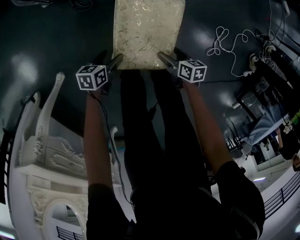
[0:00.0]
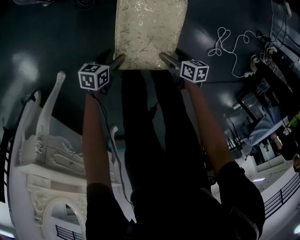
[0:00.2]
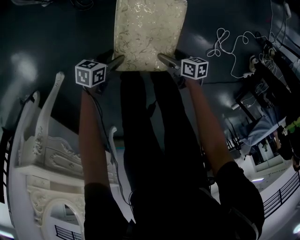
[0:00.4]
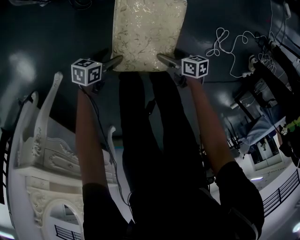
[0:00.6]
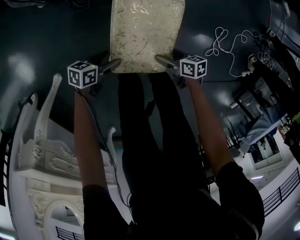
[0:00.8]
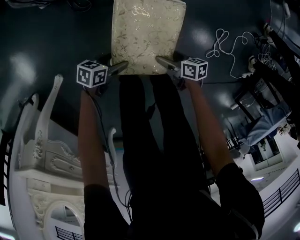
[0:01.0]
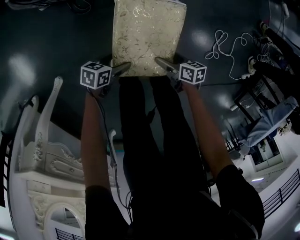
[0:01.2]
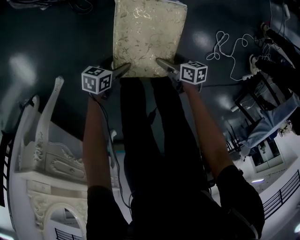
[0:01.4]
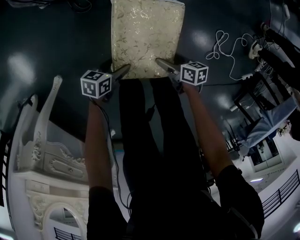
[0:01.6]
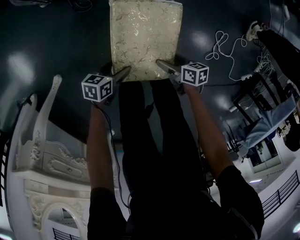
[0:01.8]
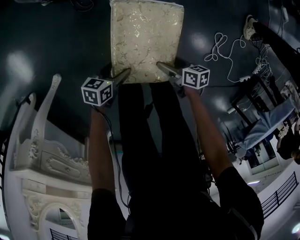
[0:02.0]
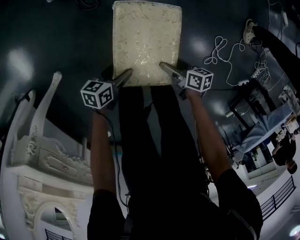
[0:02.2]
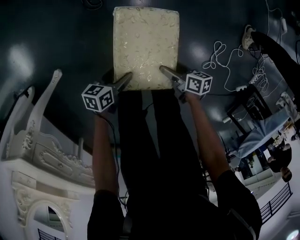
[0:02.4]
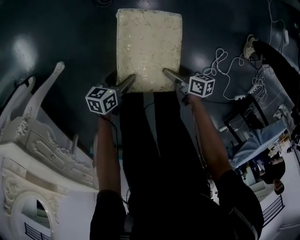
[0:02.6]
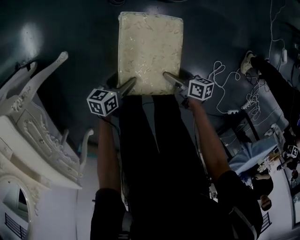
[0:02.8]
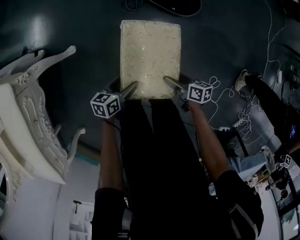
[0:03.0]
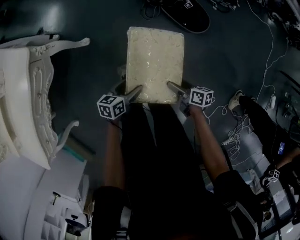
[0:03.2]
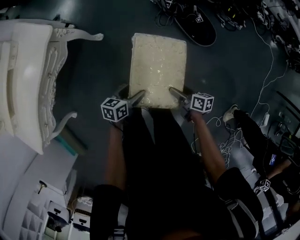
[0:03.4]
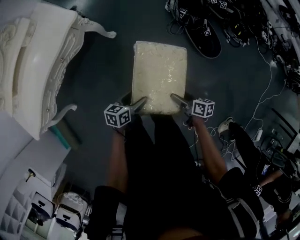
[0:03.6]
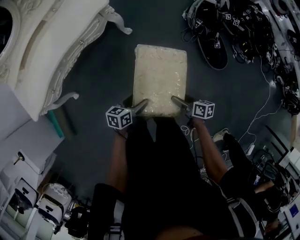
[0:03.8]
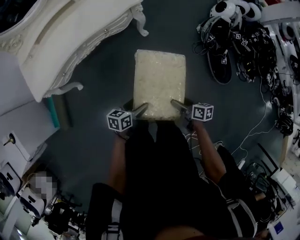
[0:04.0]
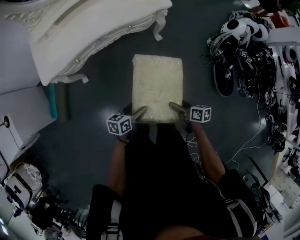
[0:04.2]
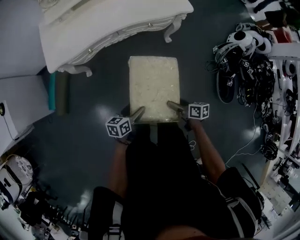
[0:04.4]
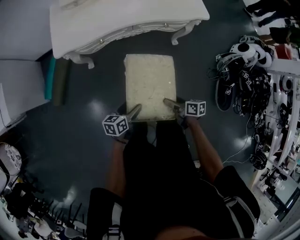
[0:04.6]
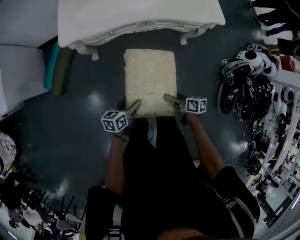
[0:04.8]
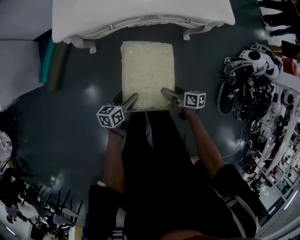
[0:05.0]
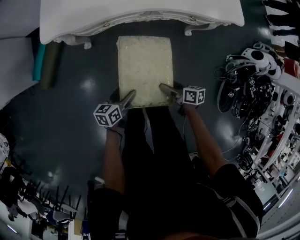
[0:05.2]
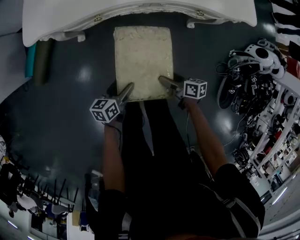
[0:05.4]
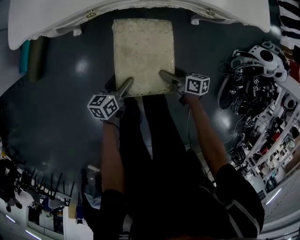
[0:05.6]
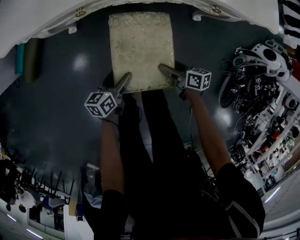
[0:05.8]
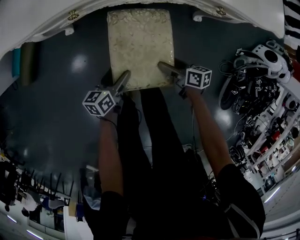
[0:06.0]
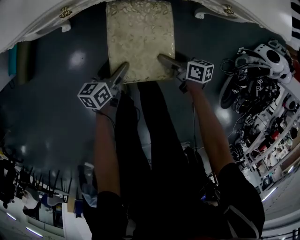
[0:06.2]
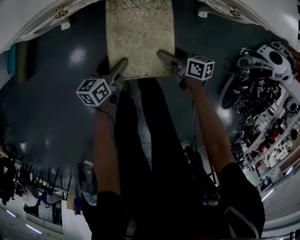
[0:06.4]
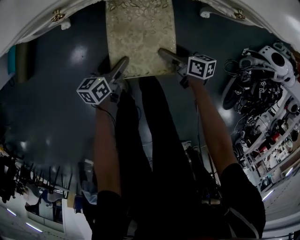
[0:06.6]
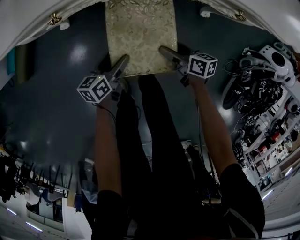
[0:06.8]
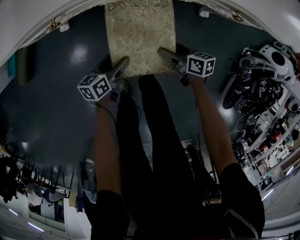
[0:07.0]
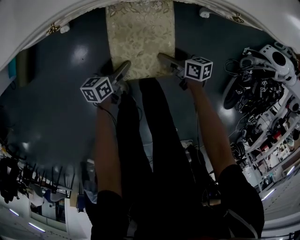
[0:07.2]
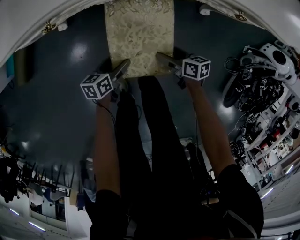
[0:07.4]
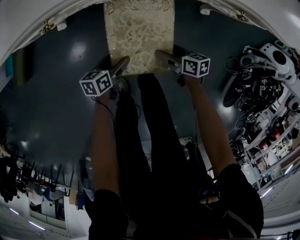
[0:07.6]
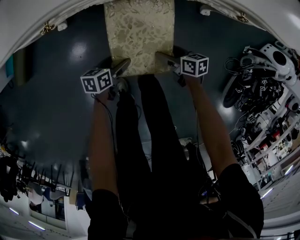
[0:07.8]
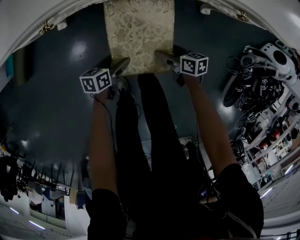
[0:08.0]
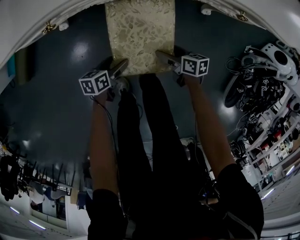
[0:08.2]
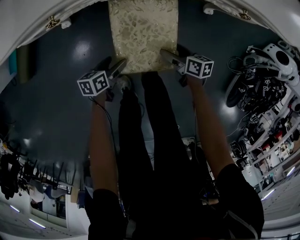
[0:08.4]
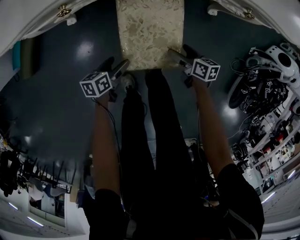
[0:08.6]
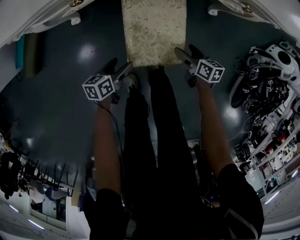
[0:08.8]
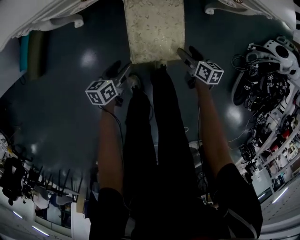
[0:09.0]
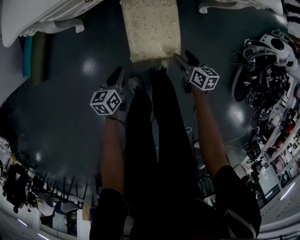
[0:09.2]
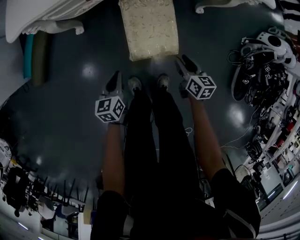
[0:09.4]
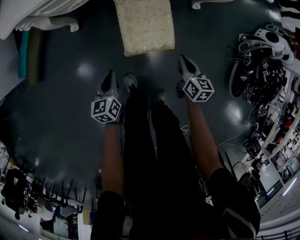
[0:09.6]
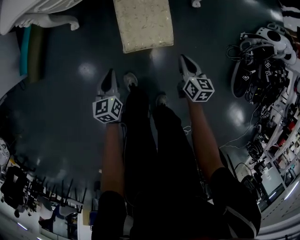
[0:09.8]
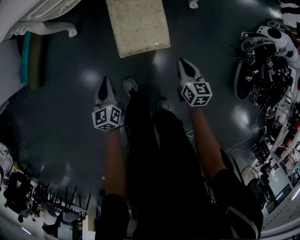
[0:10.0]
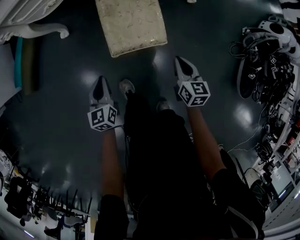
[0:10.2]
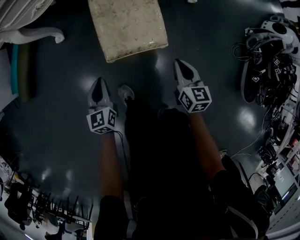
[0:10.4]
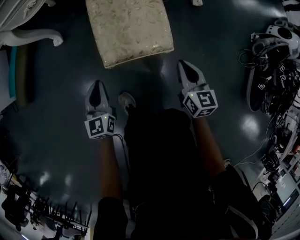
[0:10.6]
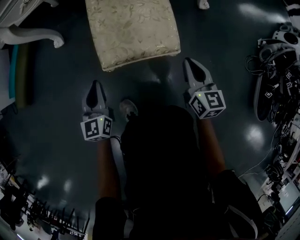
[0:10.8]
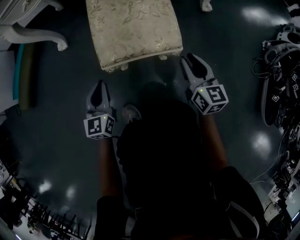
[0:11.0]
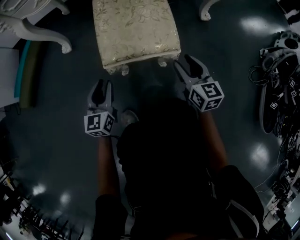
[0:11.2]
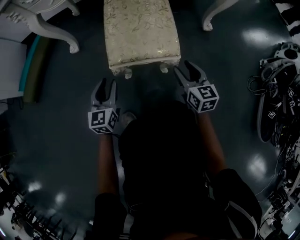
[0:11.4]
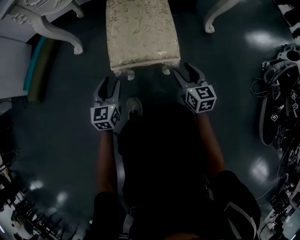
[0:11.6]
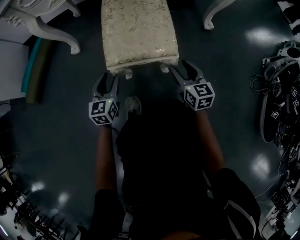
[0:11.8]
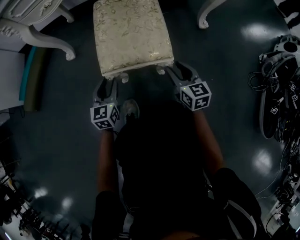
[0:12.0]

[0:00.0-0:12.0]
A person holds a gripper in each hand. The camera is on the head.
0:00.0 to 0:01.6: The grippers move only a little.
0:01.6 to 0:03.0: The two grippers go some 15 cm upward. The left gripper changes its angle by about 40 degrees; the right gripper rotates roughly 30 degrees.
0:03.0 to 0:04.4: Both grippers are carried some 50 cm. The left gripper changes its angle by some 60 degrees, while the right gripper changes its angle by some 60 degrees.
0:04.4 to 0:06.0: The two grippers go some 35 cm downward and forward. The left gripper rotates some 20 degrees.
0:06.0 to 0:07.6: Both grippers move downward, some 10 cm.
0:07.6 to 0:09.0: The left gripper goes some 10 cm upward, to the left and backward; the right gripper moves upward, about 5 cm, and swivels roughly 20 degrees.
0:09.0 to 0:10.4: The two grippers go roughly 10 cm backward. The right gripper rotates roughly 30 degrees, and closes up, while the left gripper rotates approximately 40 degrees, and closes.
0:10.4 to 0:12.0: Both grippers travel together downward, roughly 15 cm. The left gripper opens its fingers. The right gripper opens its fingers.

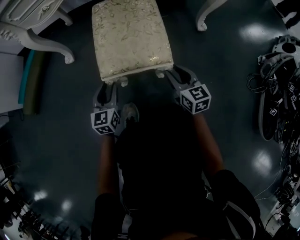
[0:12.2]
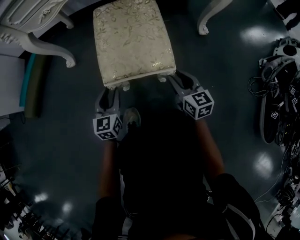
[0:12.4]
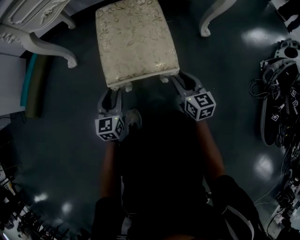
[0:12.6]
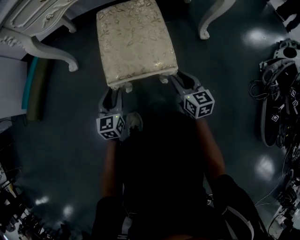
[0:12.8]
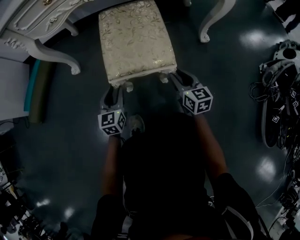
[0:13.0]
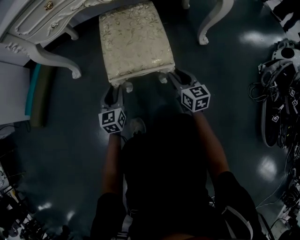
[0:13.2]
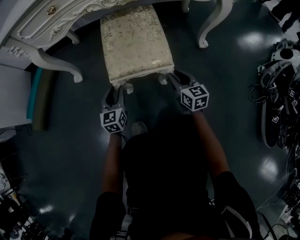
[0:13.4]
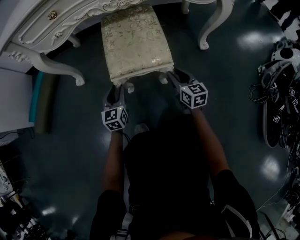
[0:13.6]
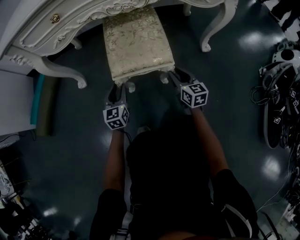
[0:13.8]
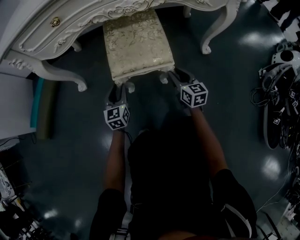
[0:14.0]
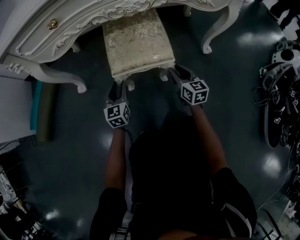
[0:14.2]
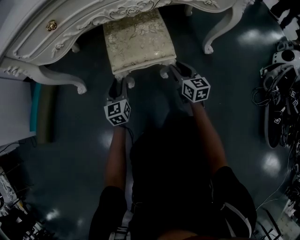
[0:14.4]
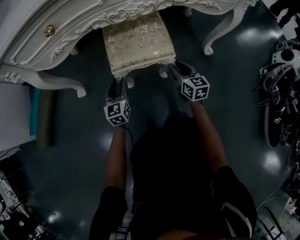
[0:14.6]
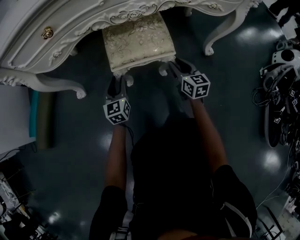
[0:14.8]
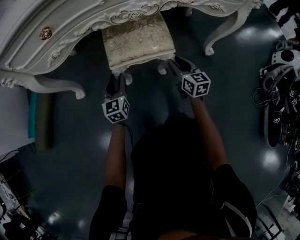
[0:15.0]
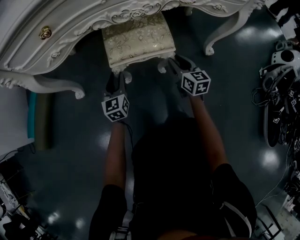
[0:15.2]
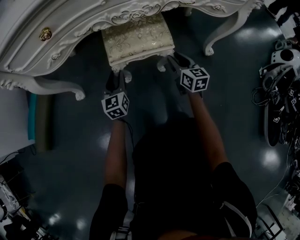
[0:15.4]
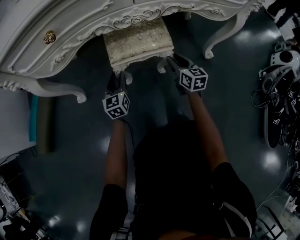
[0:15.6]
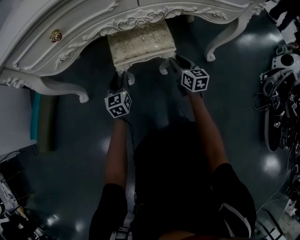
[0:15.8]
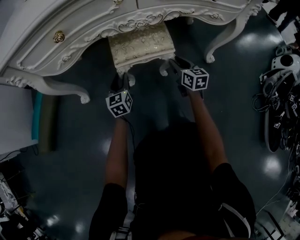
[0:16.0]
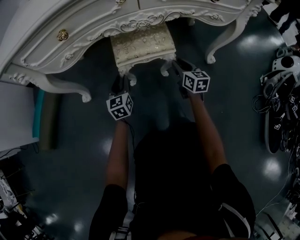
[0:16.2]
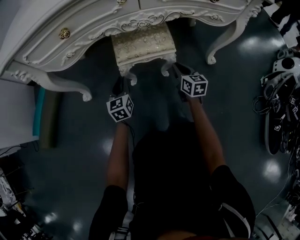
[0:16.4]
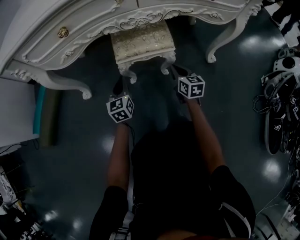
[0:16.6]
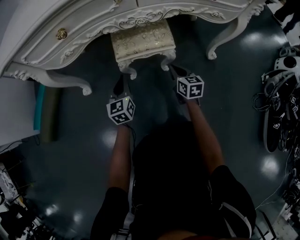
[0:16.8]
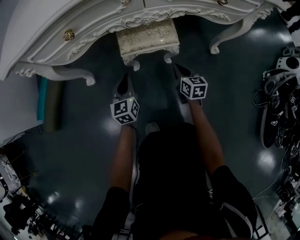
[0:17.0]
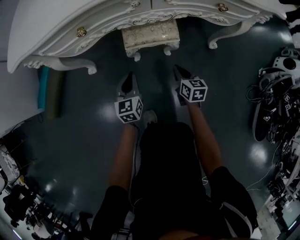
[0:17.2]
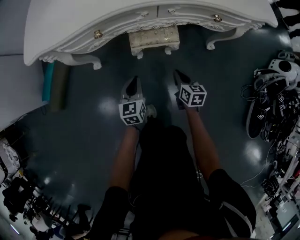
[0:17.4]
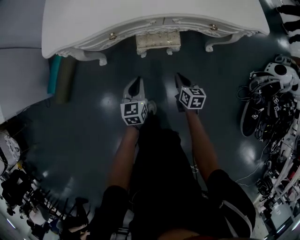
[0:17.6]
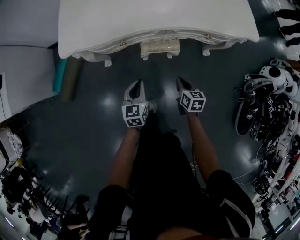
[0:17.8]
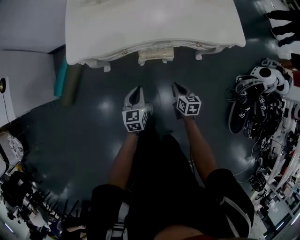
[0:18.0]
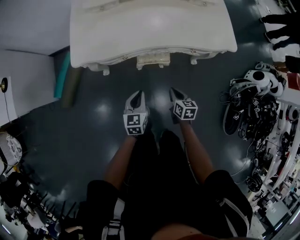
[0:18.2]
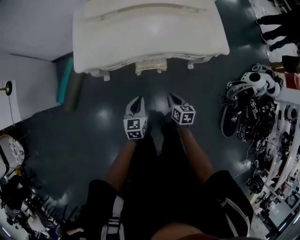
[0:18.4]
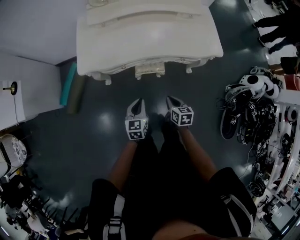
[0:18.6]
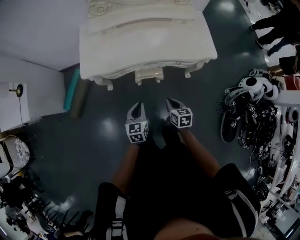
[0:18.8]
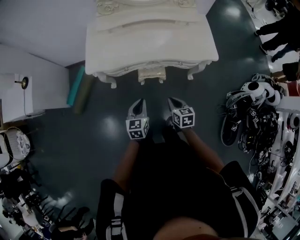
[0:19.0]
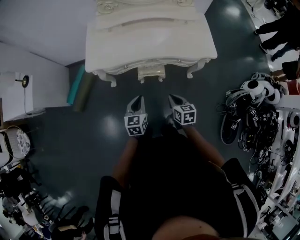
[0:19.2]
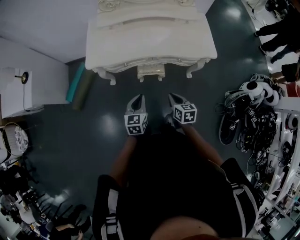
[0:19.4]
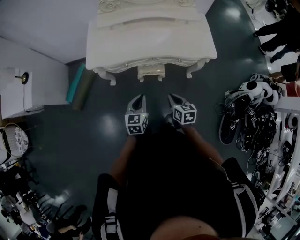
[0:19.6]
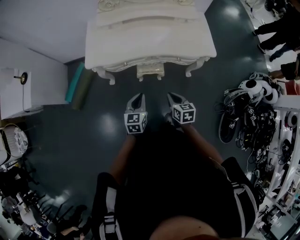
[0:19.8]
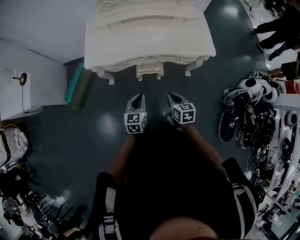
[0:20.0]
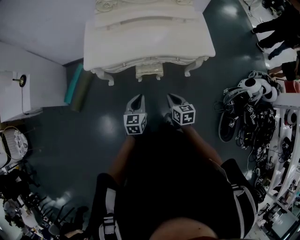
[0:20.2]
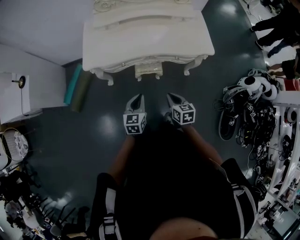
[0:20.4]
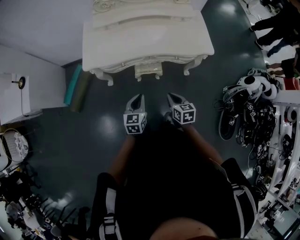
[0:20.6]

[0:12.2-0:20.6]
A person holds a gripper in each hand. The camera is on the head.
0:12.2 to 0:13.6: Both grippers move forward, approximately 10 cm.
0:13.6 to 0:15.0: The two grippers go about 15 cm forward.
0:15.0 to 0:16.4: There are only small adjustments of the grippers.
0:16.4 to 0:17.8: The left gripper travels upward by roughly 35 cm. Meanwhile the right gripper travels upward and backward by approximately 30 cm, and changes its angle by about 20 degrees.
0:17.8 to 0:19.2: Both grippers move upward, some 30 cm.
0:19.2 to 0:20.6: The grippers make only small movements.

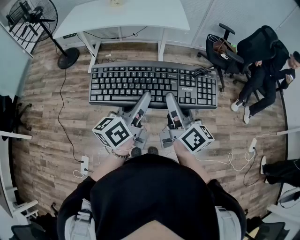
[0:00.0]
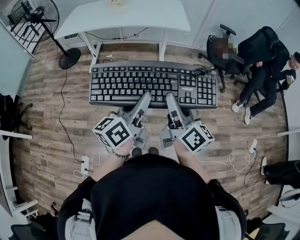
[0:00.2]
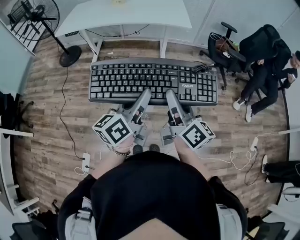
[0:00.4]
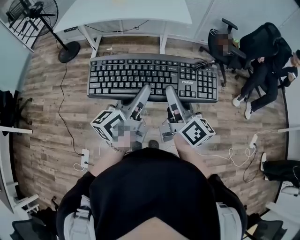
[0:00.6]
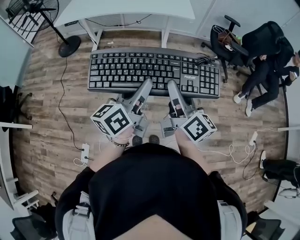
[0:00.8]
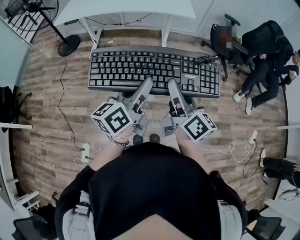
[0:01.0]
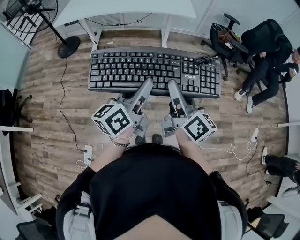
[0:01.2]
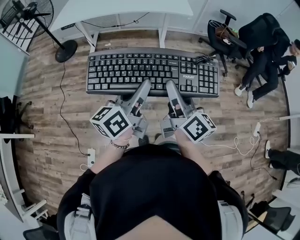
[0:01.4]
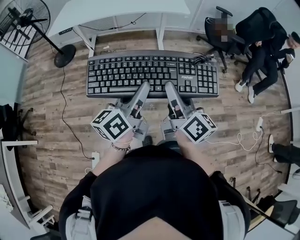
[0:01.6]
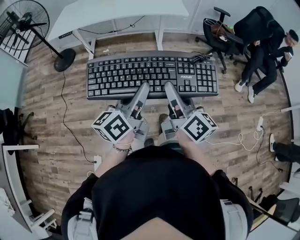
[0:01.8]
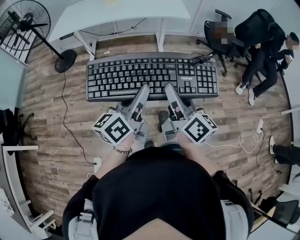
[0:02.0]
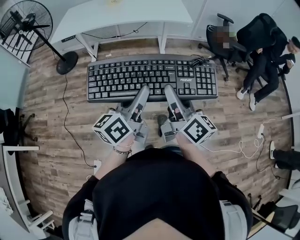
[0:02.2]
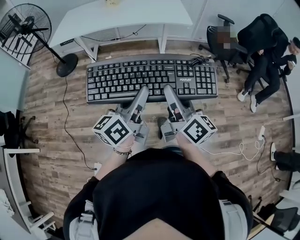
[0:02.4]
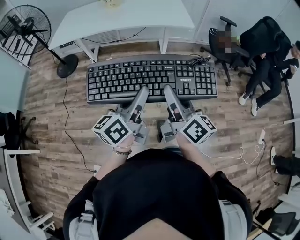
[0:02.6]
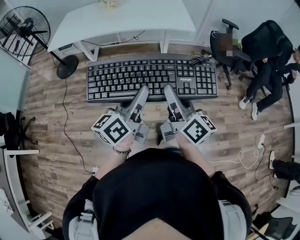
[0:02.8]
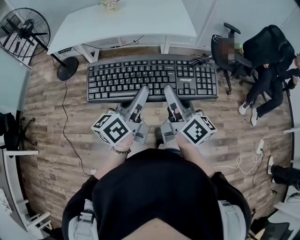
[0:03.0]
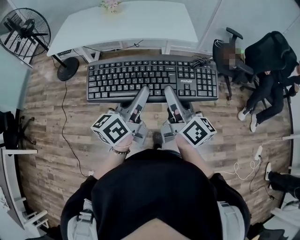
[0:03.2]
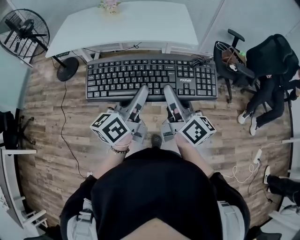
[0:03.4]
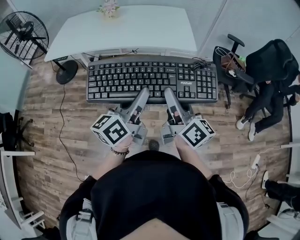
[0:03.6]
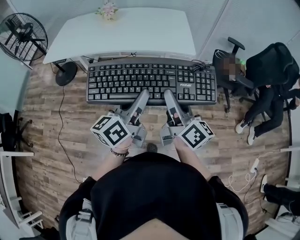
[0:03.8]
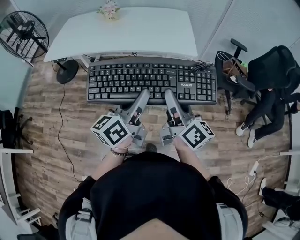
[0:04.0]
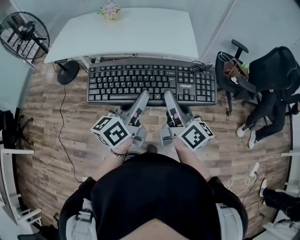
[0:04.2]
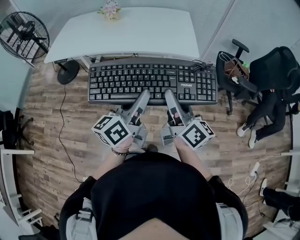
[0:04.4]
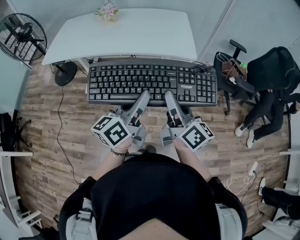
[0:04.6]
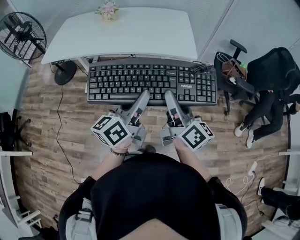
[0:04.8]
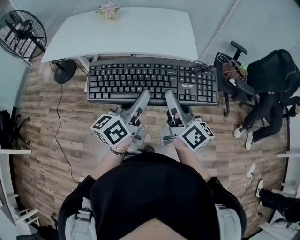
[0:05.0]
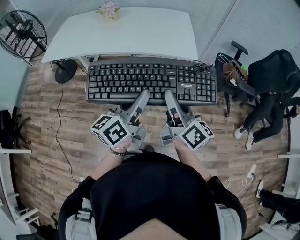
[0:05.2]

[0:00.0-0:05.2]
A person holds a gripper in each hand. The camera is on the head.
0:00.0 to 0:01.8: Both grippers travel together to the left, approximately 5 cm.
0:01.8 to 0:03.4: The grippers both shift forward by about 20 cm.
0:03.4 to 0:05.2: The two grippers go about 10 cm forward.
